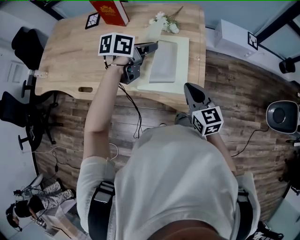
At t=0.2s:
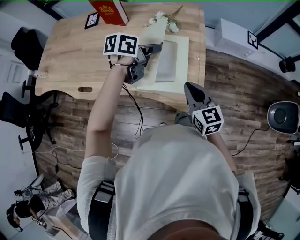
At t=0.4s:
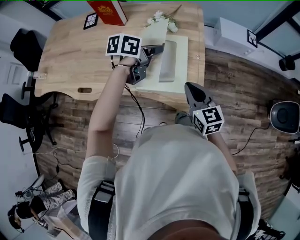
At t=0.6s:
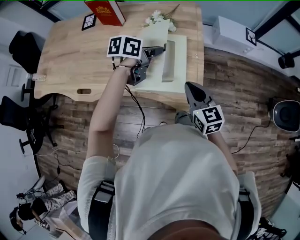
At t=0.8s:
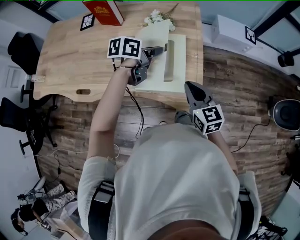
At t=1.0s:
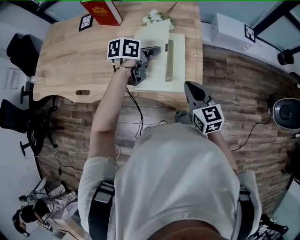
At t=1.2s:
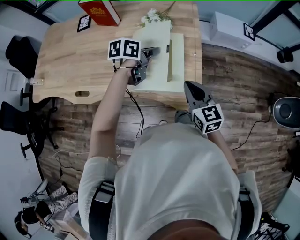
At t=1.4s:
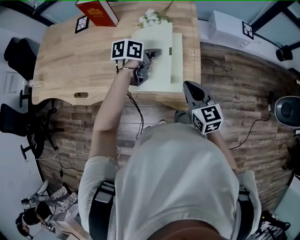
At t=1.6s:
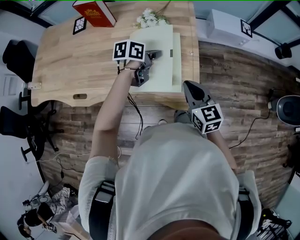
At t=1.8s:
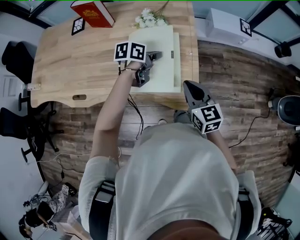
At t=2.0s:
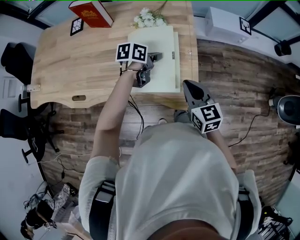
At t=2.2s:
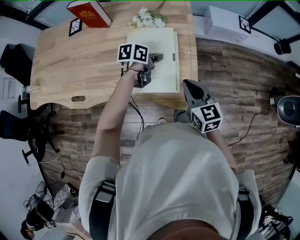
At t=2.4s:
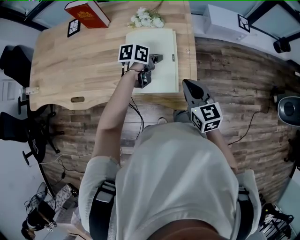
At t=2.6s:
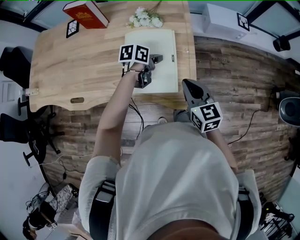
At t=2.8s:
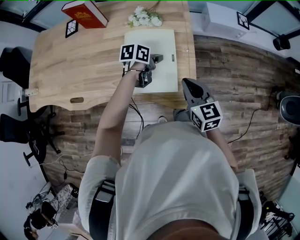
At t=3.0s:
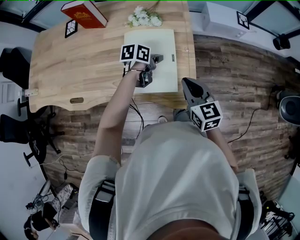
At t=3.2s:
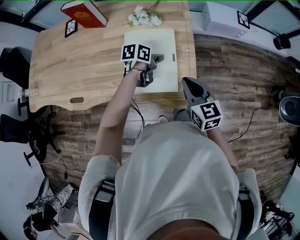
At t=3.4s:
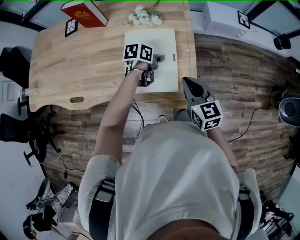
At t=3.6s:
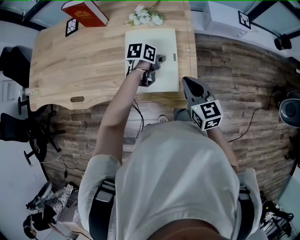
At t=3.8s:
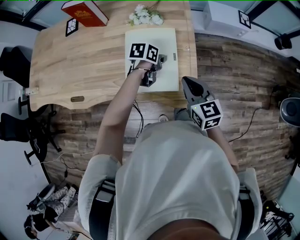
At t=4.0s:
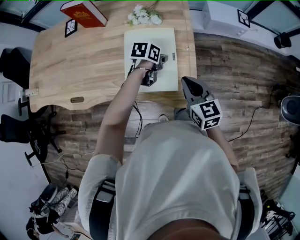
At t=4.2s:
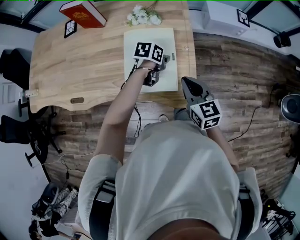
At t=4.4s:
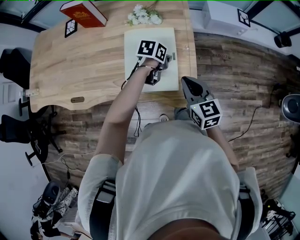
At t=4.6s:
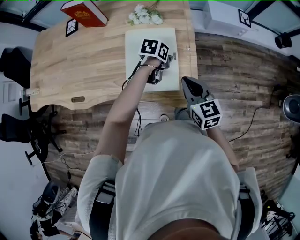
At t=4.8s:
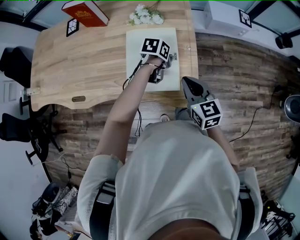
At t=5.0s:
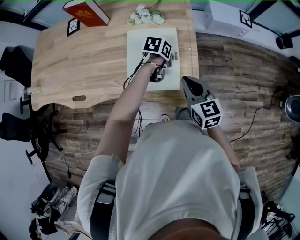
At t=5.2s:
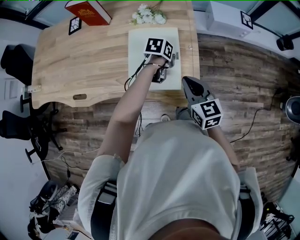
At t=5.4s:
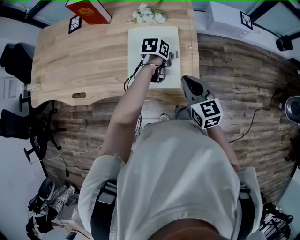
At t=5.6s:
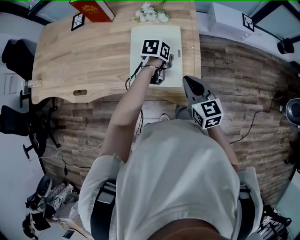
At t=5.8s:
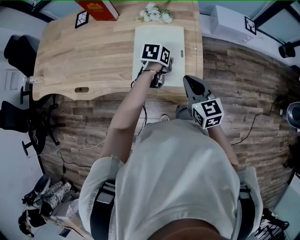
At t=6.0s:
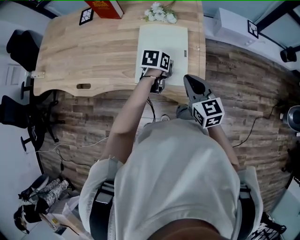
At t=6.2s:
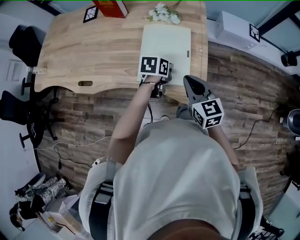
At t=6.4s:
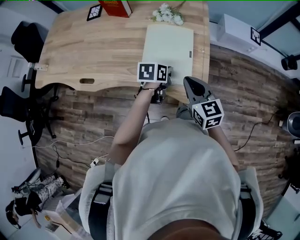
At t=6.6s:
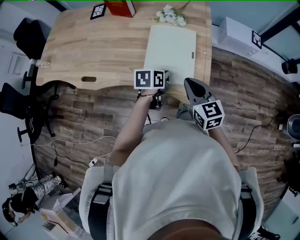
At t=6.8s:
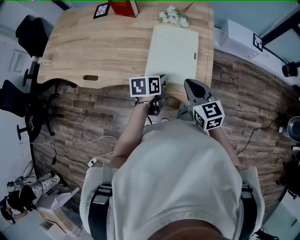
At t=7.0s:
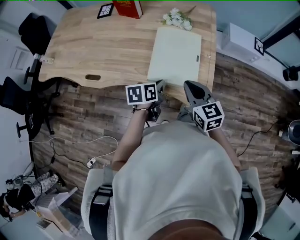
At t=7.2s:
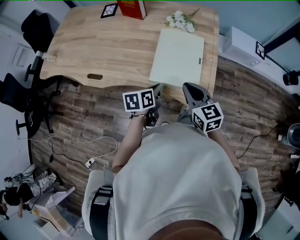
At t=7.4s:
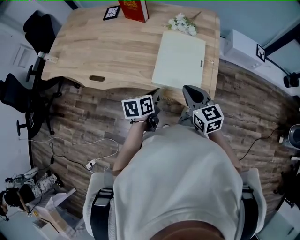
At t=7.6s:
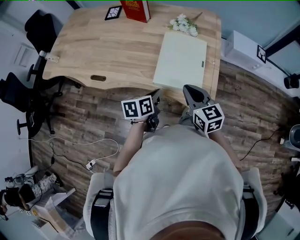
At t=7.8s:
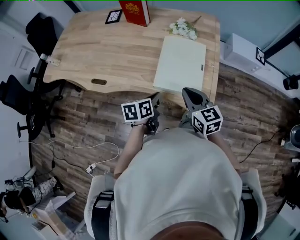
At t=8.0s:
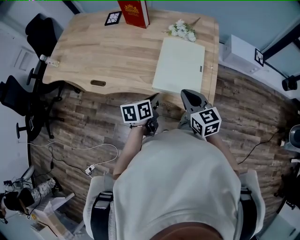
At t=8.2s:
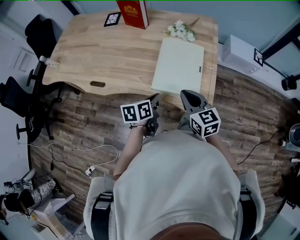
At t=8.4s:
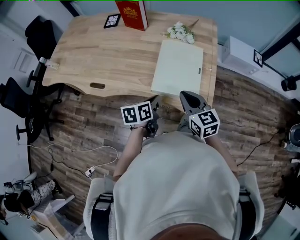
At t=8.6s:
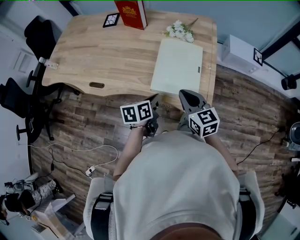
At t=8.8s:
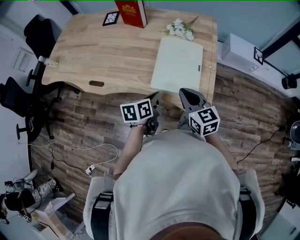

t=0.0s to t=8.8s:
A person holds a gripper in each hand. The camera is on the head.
t=0.0s to t=1.4s: The left gripper travels downward by roughly 10 cm.
t=1.4s to t=3.0s: The left gripper moves downward, about 10 cm.
t=3.0s to t=5.8s: There are only small adjustments of the grippers.
t=5.8s to t=7.4s: The right gripper heads to the left, covering approximately 10 cm; the left gripper goes about 20 cm backward and to the left, and swivels about 30 degrees.
t=7.4s to t=8.8s: Both grippers stay about where they are.

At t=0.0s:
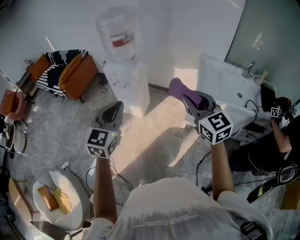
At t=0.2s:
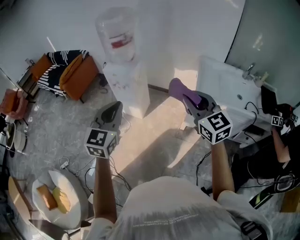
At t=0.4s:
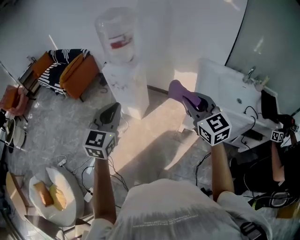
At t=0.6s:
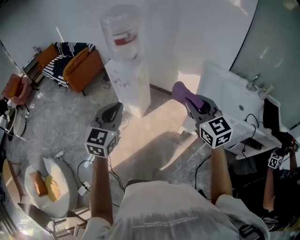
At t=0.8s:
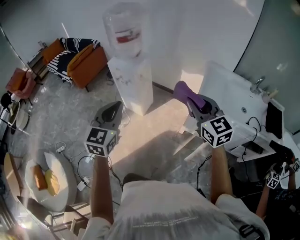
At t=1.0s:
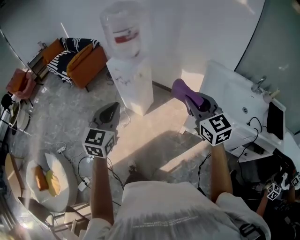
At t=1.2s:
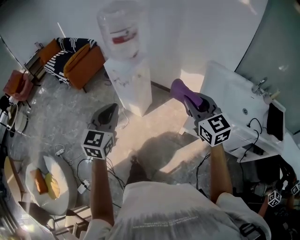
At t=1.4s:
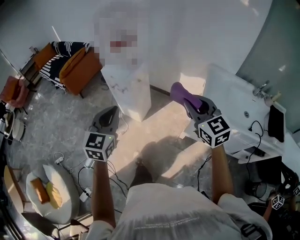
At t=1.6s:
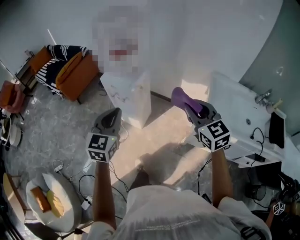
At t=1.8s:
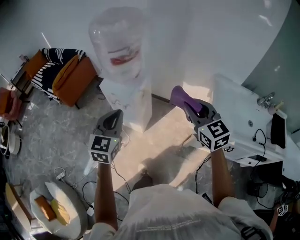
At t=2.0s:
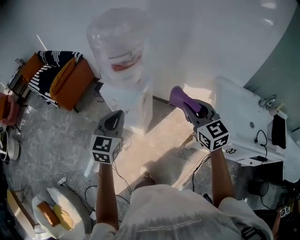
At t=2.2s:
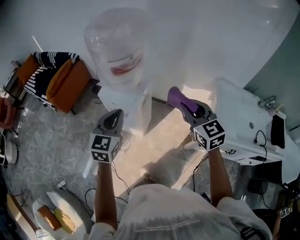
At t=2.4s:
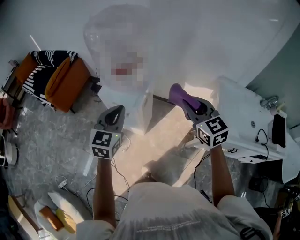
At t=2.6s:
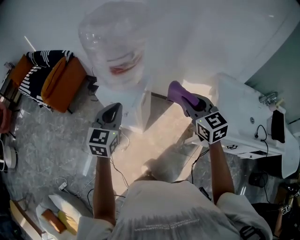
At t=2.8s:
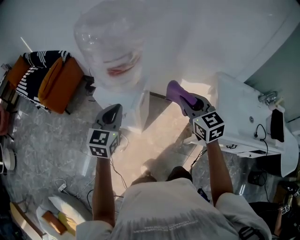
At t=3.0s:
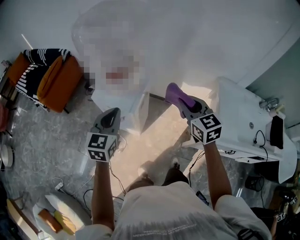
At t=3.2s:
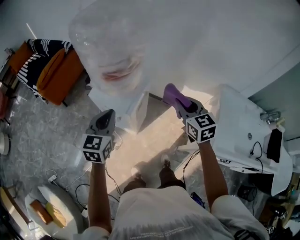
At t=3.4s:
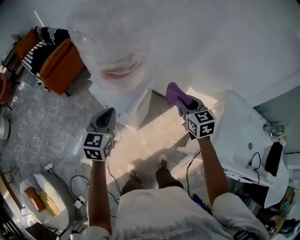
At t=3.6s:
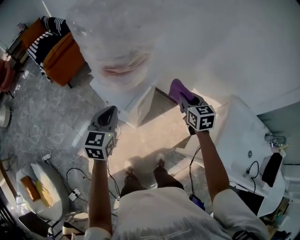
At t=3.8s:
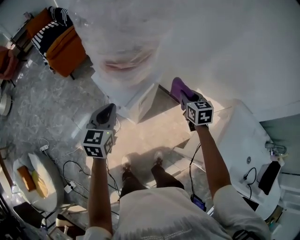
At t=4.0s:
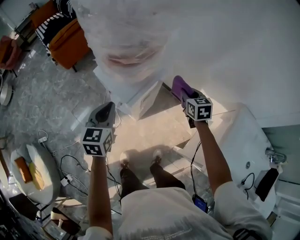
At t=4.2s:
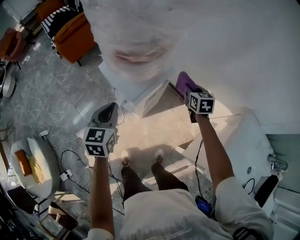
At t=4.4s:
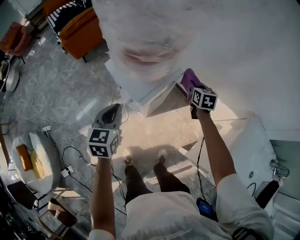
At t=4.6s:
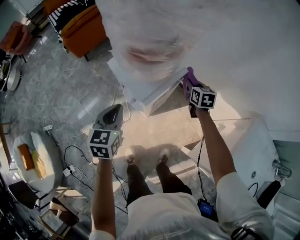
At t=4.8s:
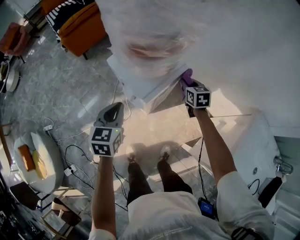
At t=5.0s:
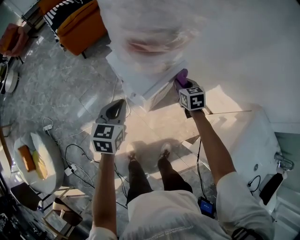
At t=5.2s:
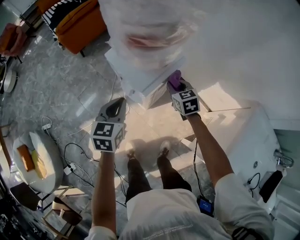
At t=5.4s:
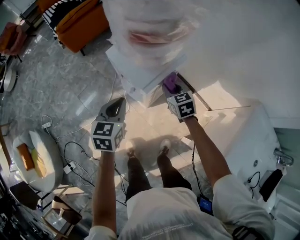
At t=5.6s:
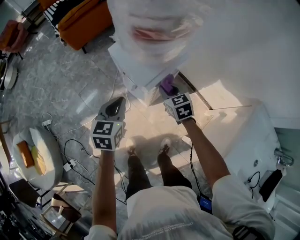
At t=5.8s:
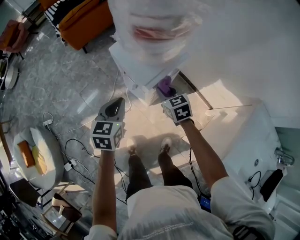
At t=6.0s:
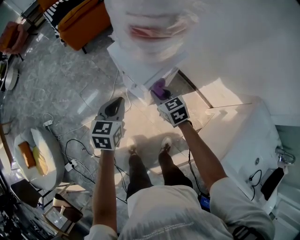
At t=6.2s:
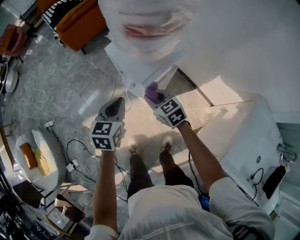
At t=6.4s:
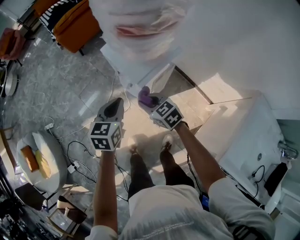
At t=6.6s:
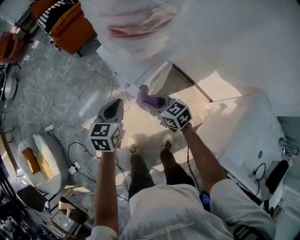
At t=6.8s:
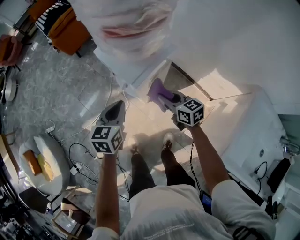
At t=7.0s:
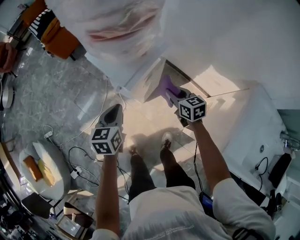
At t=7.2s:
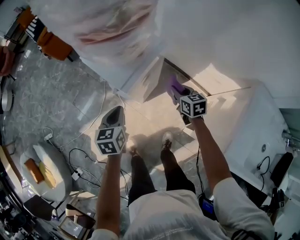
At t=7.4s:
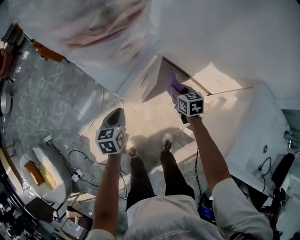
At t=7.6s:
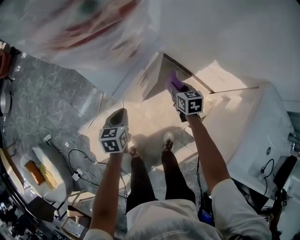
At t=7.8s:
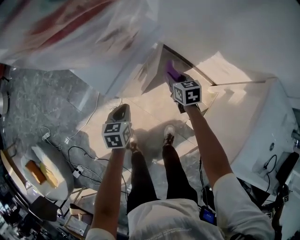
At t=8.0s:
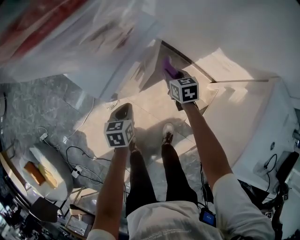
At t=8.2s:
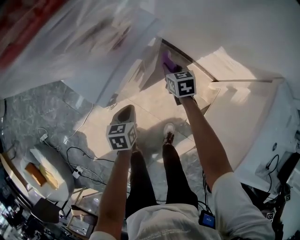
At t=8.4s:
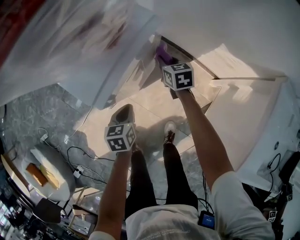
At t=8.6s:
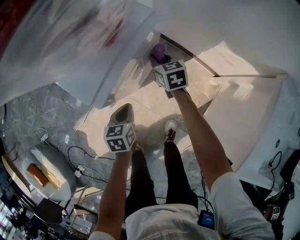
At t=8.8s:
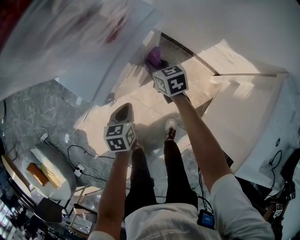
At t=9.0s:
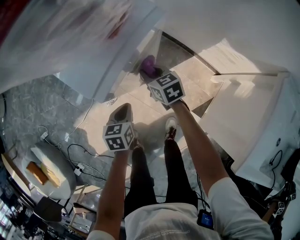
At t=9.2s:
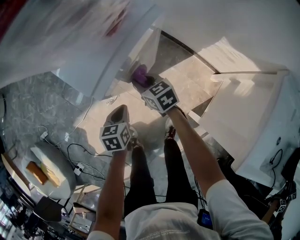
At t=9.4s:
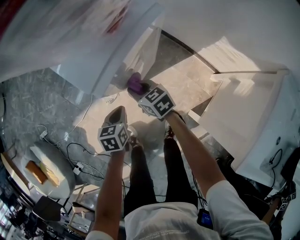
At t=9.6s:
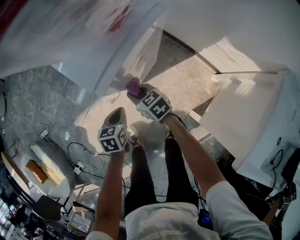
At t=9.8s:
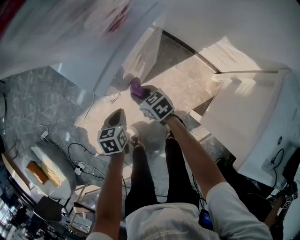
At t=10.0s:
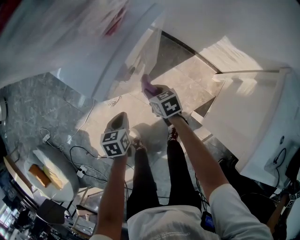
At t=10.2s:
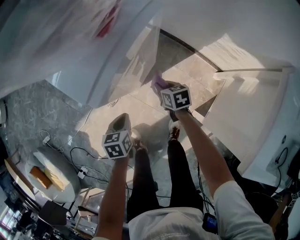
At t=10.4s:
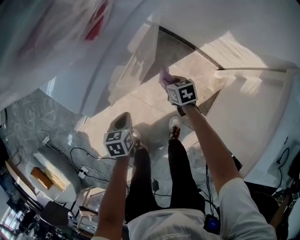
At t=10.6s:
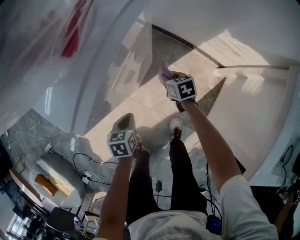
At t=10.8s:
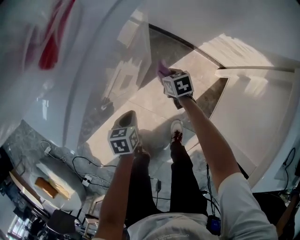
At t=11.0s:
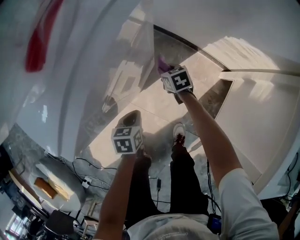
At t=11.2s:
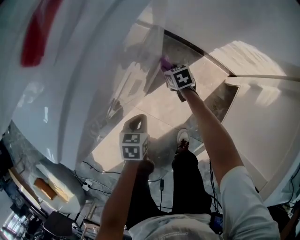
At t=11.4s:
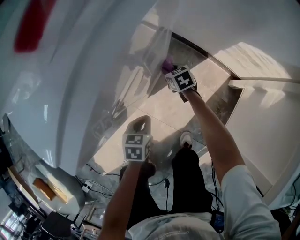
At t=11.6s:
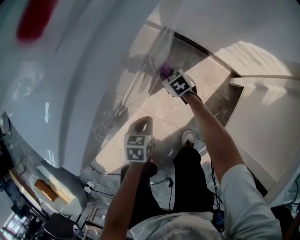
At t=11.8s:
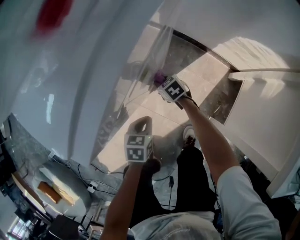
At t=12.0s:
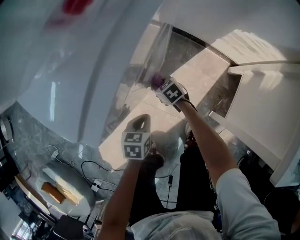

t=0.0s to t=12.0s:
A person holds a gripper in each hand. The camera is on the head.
t=0.0s to t=1.6s: Both grippers move forward, some 20 cm.
t=1.6s to t=3.0s: The grippers both shift forward by about 25 cm.
t=3.0s to t=4.4s: The left gripper travels downward by about 15 cm, and changes its angle by some 30 degrees. Meanwhile the right gripper travels forward and downward by roughly 35 cm, and turns by about 20 degrees.
t=4.4s to t=6.0s: The right gripper heads to the left and backward, covering some 25 cm, and swivels about 30 degrees; the left gripper changes place by some 5 cm.
t=6.0s to t=7.6s: The left gripper is displaced downward and to the right by approximately 20 cm. Meanwhile the right gripper goes roughly 25 cm to the right and downward, and changes its angle by some 30 degrees.
t=7.6s to t=9.0s: The right gripper moves to the left and downward, some 15 cm, while the left gripper moves downward, about 10 cm.
t=9.0s to t=10.4s: The left gripper moves downward, roughly 5 cm, while the right gripper is displaced downward, to the right and backward by approximately 15 cm, and turns by about 20 degrees.
t=10.4s to t=12.0s: The left gripper goes some 10 cm downward, while the right gripper goes roughly 15 cm to the left and downward.

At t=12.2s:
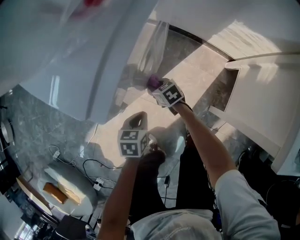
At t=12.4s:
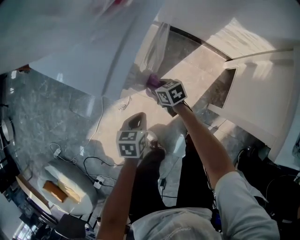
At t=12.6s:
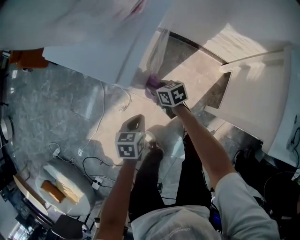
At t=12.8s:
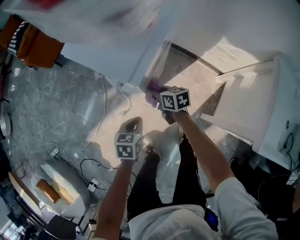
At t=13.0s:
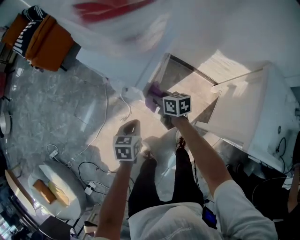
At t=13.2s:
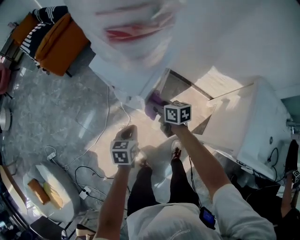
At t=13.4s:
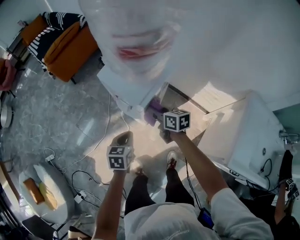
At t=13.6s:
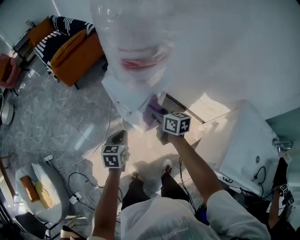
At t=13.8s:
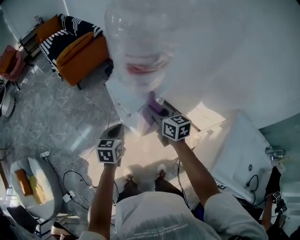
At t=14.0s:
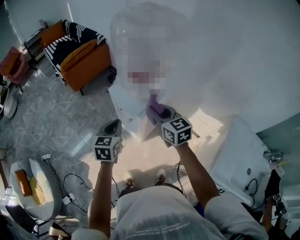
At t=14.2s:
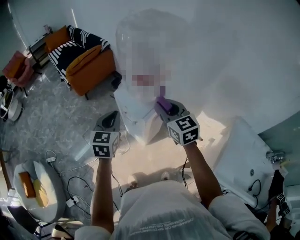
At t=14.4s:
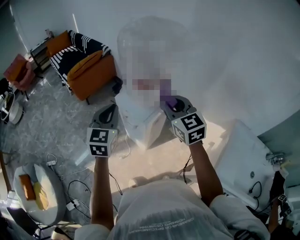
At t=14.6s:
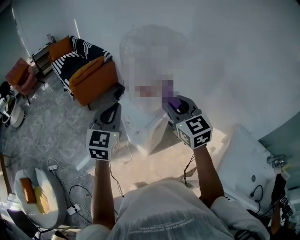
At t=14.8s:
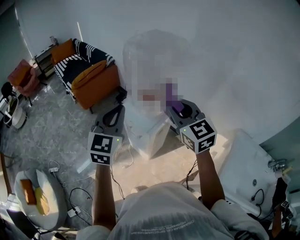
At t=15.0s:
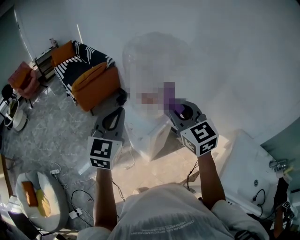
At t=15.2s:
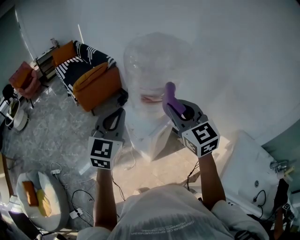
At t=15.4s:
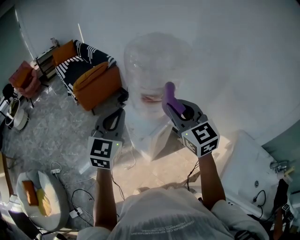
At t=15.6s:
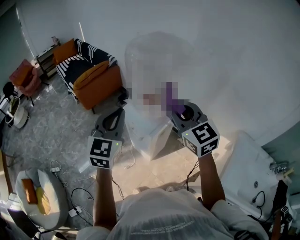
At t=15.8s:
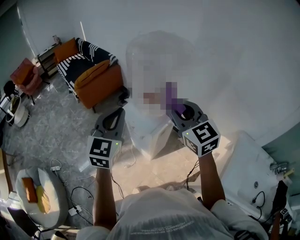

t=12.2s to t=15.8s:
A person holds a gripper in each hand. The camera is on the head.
t=12.2s to t=14.0s: The two grippers go roughly 60 cm upward. The right gripper tilts its fingers about 30 degrees upward; the left gripper turns by about 40 degrees.
t=14.0s to t=15.8s: The two grippers go approximately 20 cm upward. The left gripper changes its angle by about 30 degrees; the right gripper rotates some 20 degrees.
